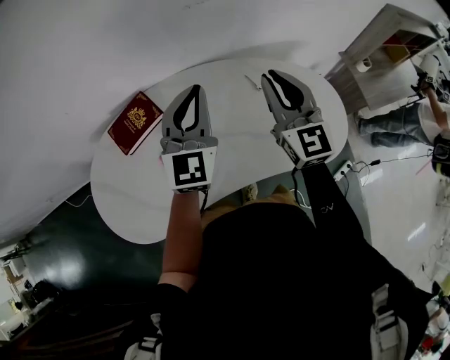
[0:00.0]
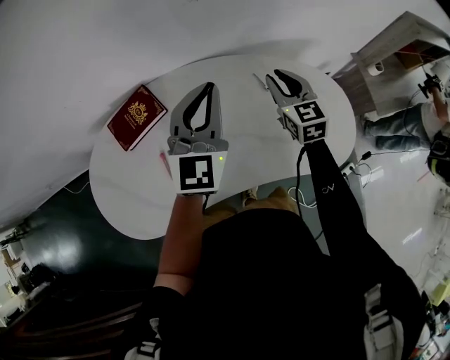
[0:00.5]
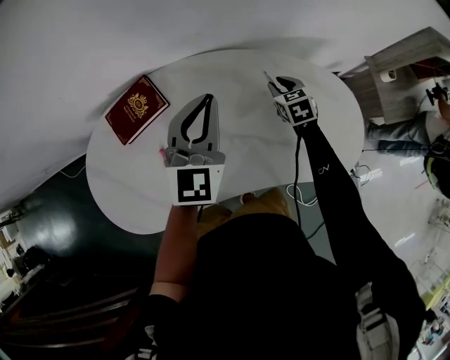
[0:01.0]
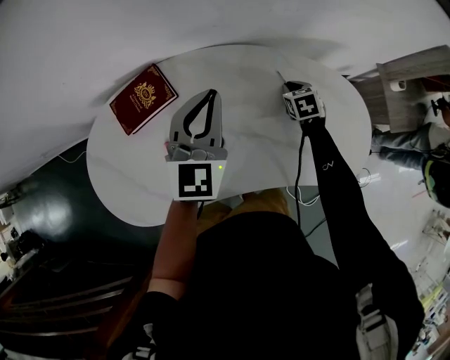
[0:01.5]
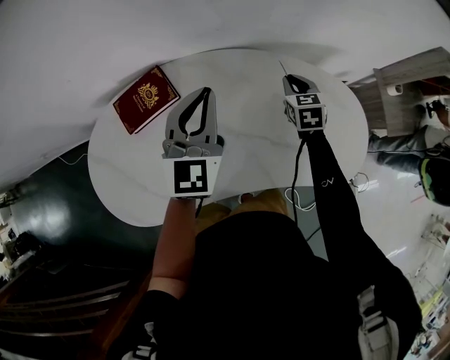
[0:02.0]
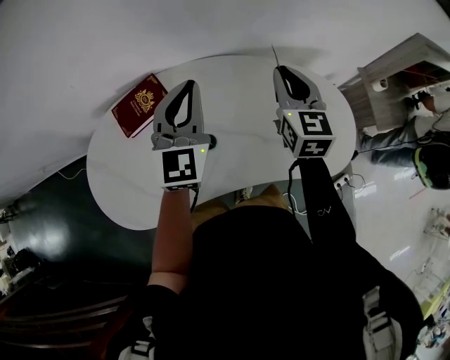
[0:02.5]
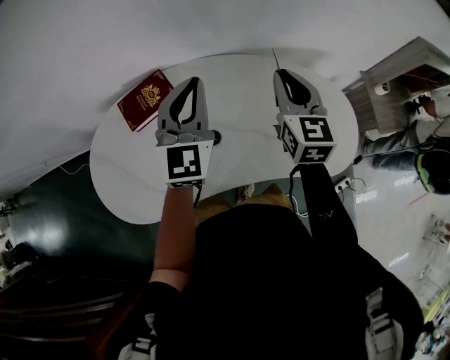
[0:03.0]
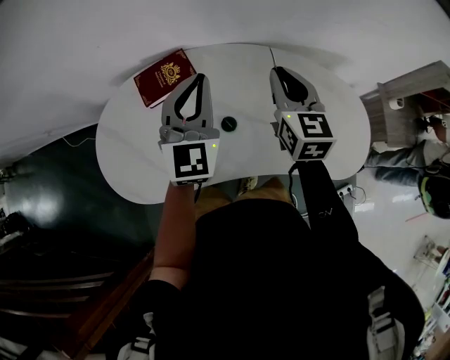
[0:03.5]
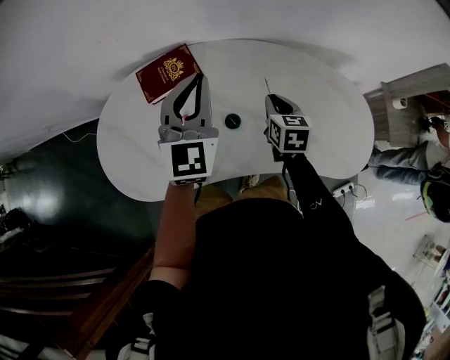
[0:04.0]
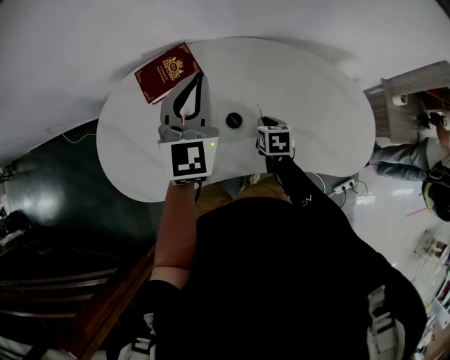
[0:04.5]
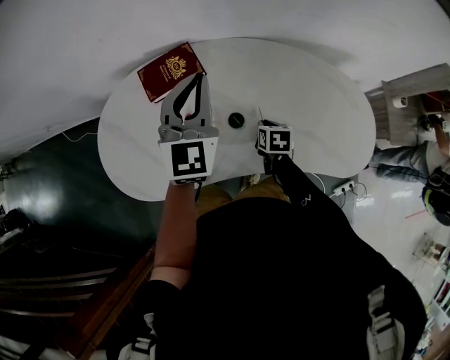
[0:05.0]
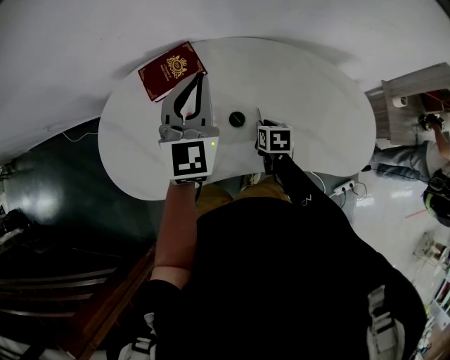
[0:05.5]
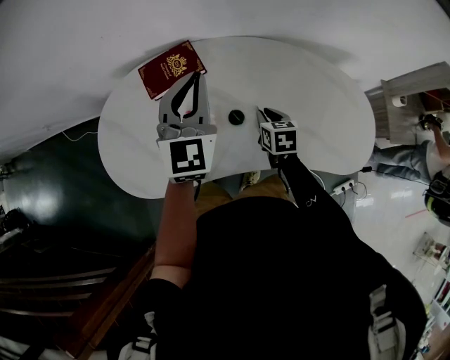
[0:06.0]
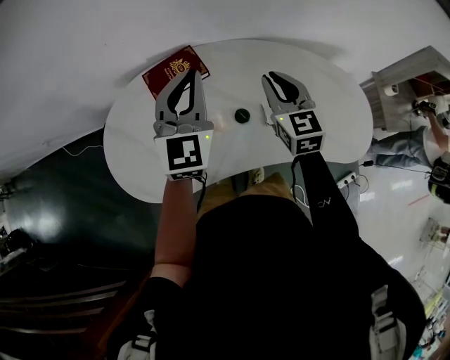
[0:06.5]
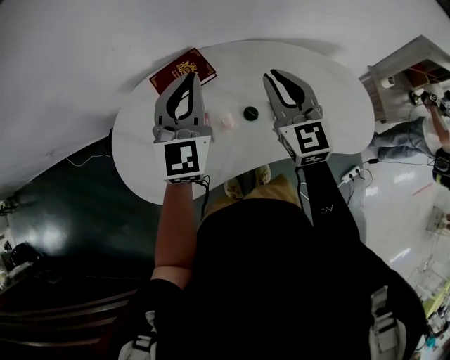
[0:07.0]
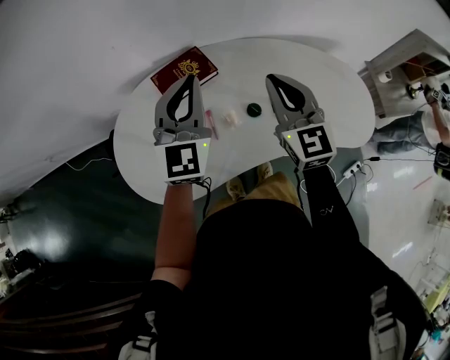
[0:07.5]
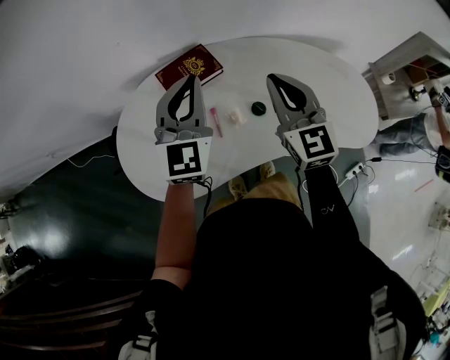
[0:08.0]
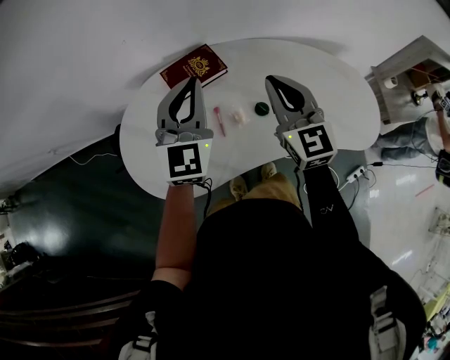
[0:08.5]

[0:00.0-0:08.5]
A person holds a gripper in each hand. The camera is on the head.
0:00.0 to 0:02.0: The right gripper goes roughly 25 cm downward and forward, and tilts its fingers roughly 40 degrees downward, while the left gripper shifts by approximately 5 cm.
0:02.0 to 0:04.0: The right gripper goes about 15 cm to the left and backward, and moves roughly 20 cm upward and comes back; the left gripper is displaced to the left and backward by roughly 10 cm.
0:04.0 to 0:06.5: The left gripper goes some 5 cm to the left, while the right gripper shifts about 15 cm upward and to the left, and swivels about 30 degrees.
0:06.5 to 0:08.5: The left gripper is displaced to the left by roughly 10 cm; the right gripper is displaced to the left, backward and upward by about 15 cm.

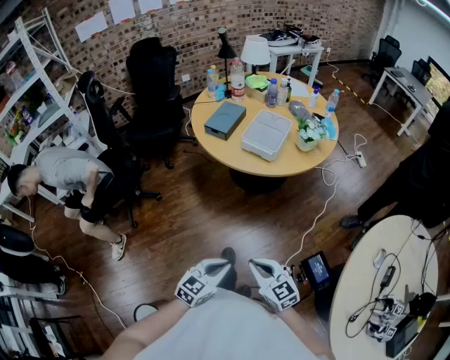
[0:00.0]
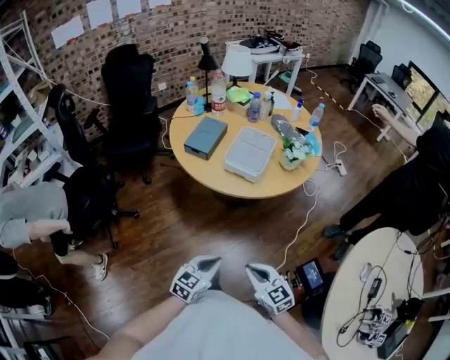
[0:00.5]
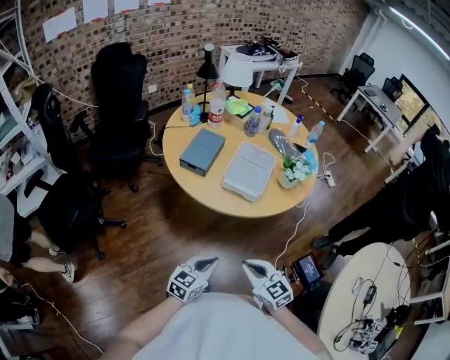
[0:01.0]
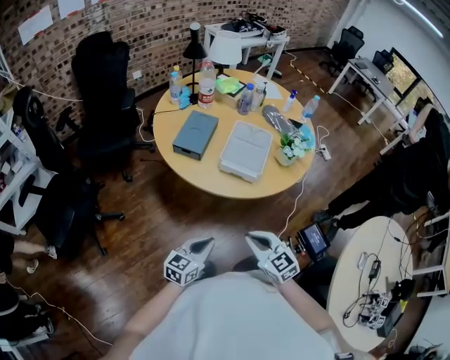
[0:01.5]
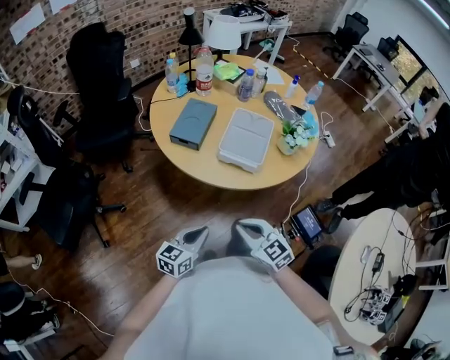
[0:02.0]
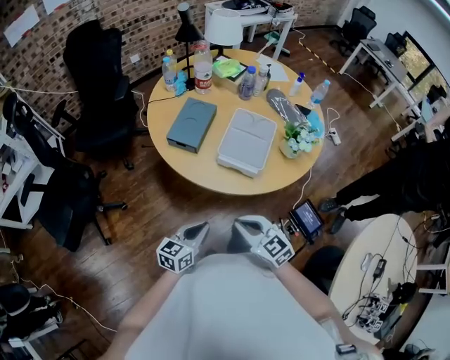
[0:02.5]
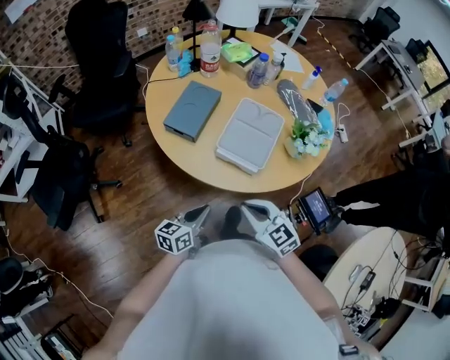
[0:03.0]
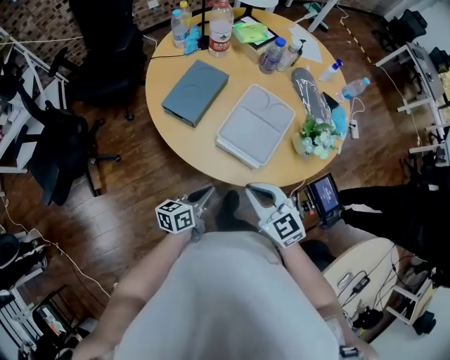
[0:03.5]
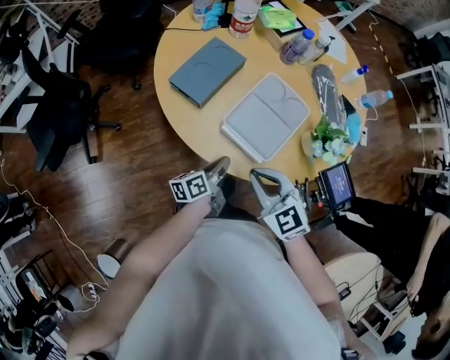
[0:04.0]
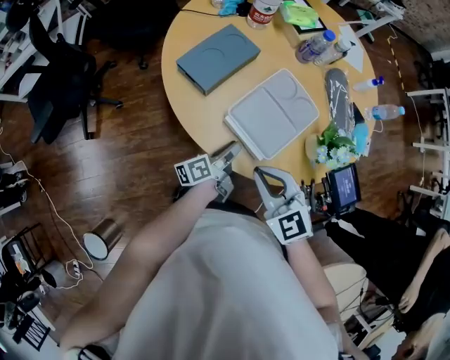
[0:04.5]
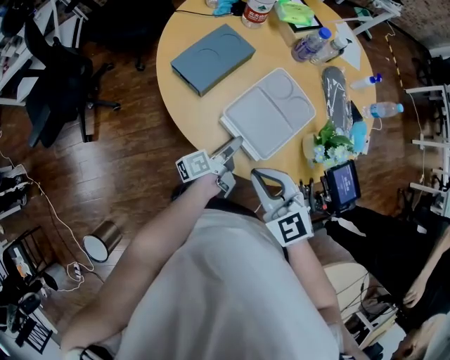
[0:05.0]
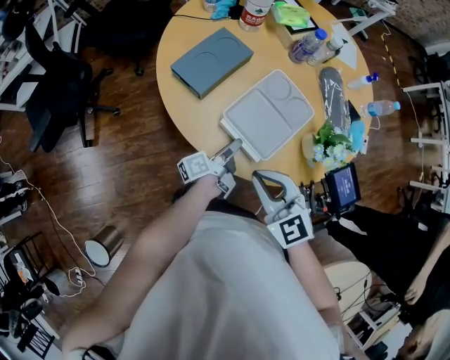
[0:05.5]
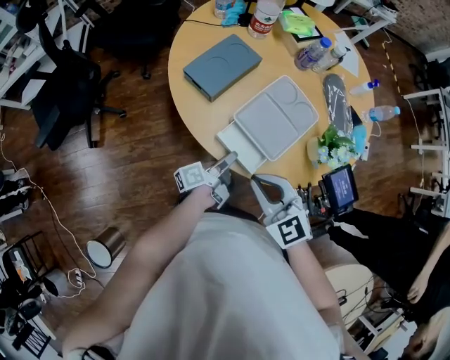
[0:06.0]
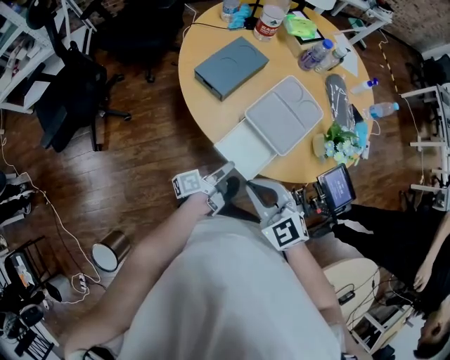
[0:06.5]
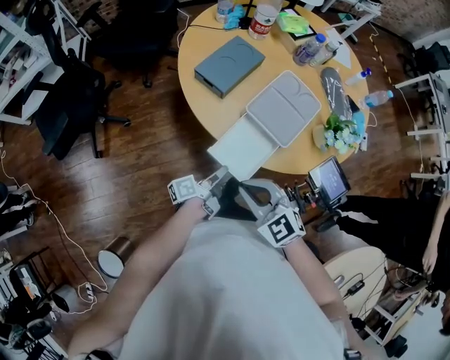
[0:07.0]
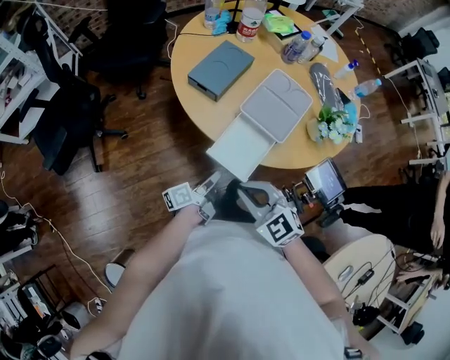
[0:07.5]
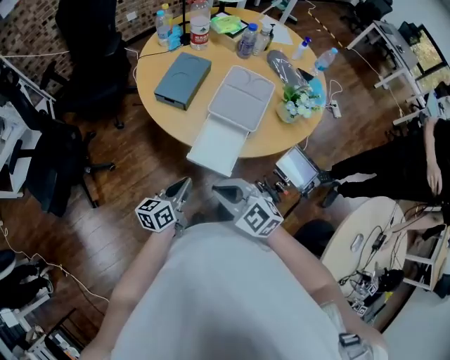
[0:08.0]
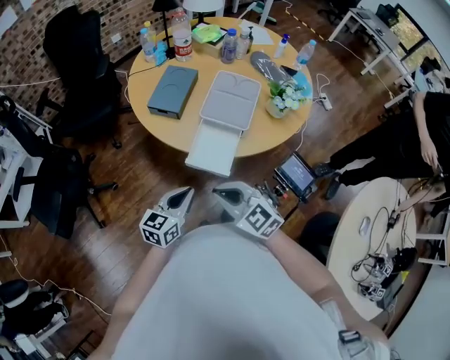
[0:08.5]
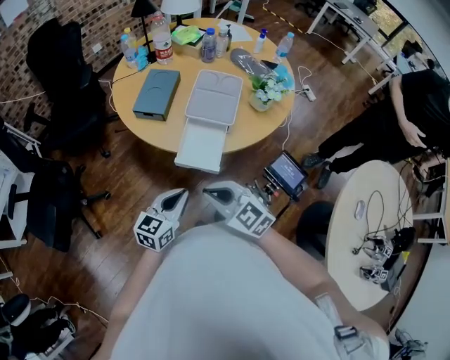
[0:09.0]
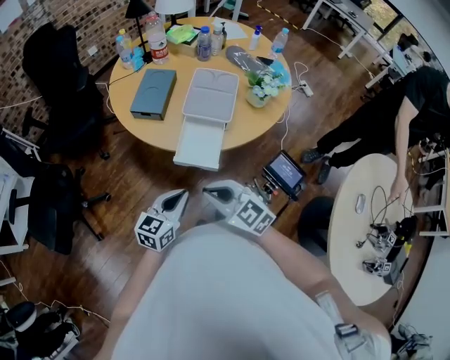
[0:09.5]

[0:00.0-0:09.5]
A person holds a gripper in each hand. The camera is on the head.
0:00.0 to 0:02.0: Both grippers travel together forward, approximately 30 cm.
0:02.0 to 0:04.0: The left gripper moves forward, to the right and downward, approximately 30 cm, and twists approximately 50 degrees counterclockwise, seen from behind. Meanwhile the right gripper heads forward and to the right, covering roughly 20 cm, and swivels approximately 20 degrees.
0:04.0 to 0:05.5: The left gripper moves about 5 cm, swivels roughly 20 degrees, and opens its fingers.
0:05.5 to 0:07.5: The left gripper heads backward and to the left, covering about 20 cm, while the right gripper moves to the left and backward, some 15 cm.
0:07.5 to 0:09.5: The left gripper moves upward and backward, about 15 cm, and twists about 70 degrees clockwise, seen from behind. Meanwhile the right gripper shifts about 5 cm backward, and changes its angle by roughly 20 degrees.

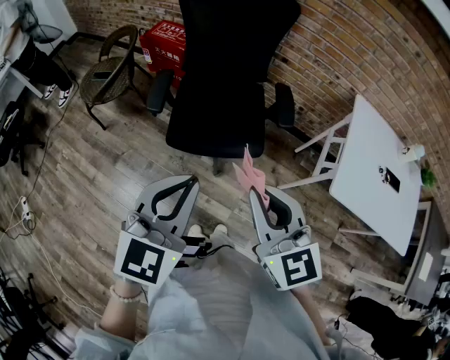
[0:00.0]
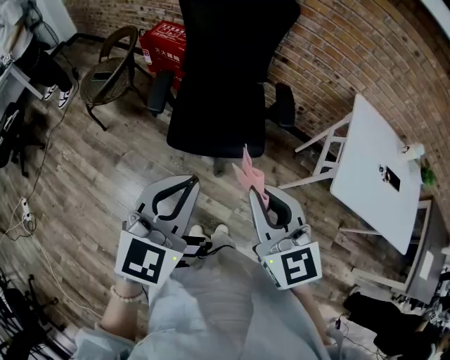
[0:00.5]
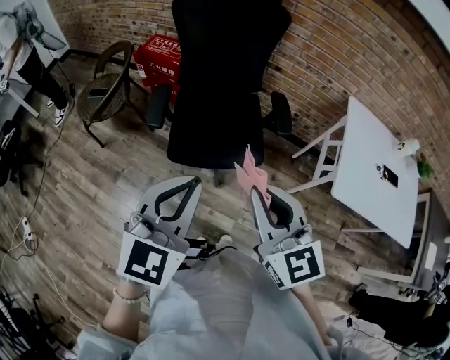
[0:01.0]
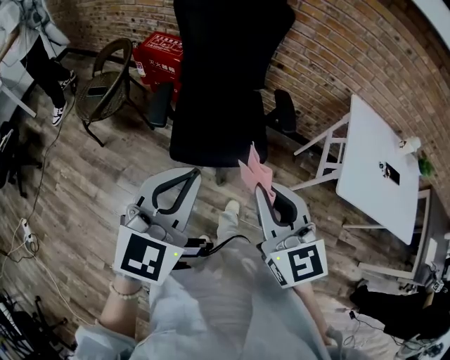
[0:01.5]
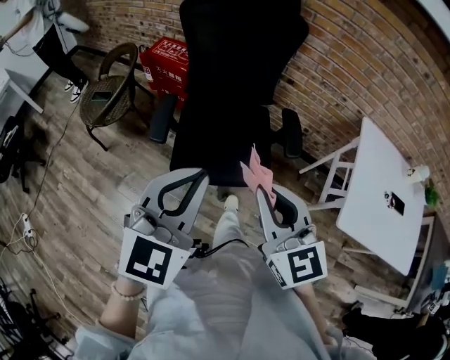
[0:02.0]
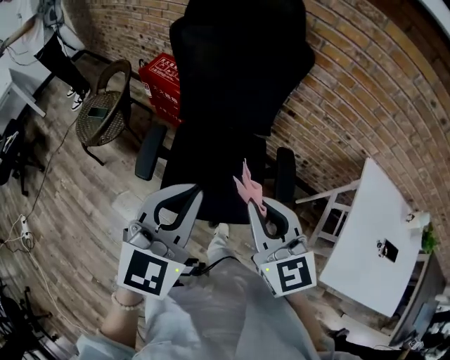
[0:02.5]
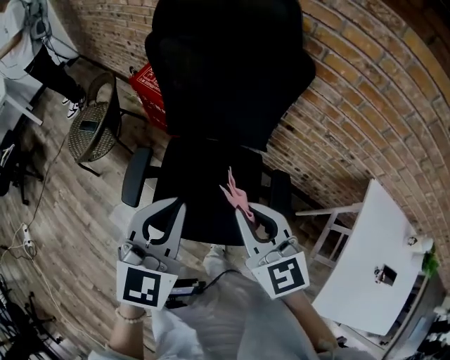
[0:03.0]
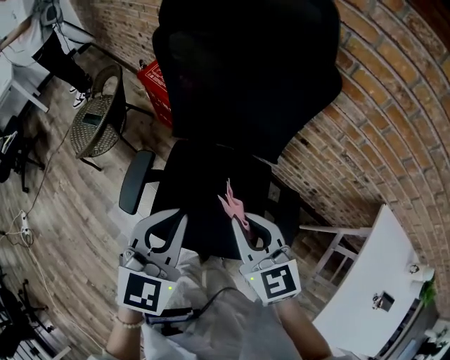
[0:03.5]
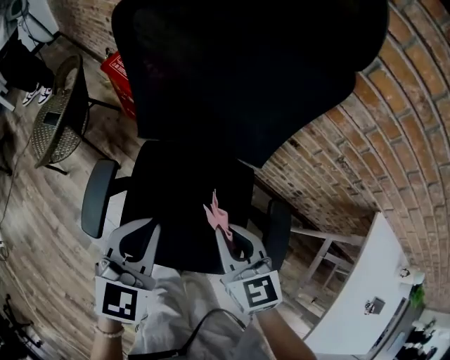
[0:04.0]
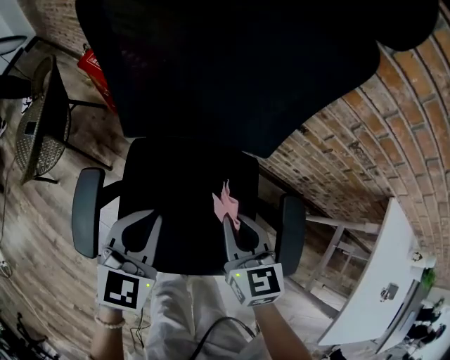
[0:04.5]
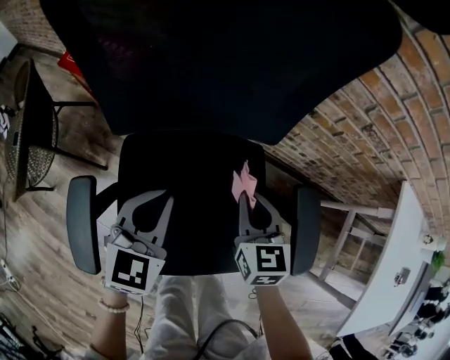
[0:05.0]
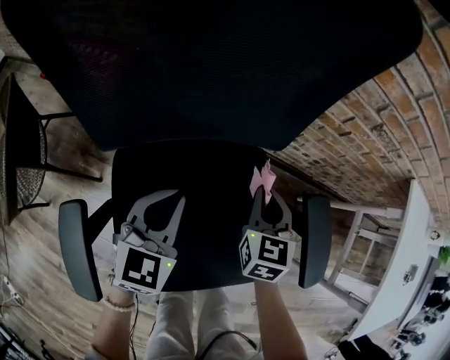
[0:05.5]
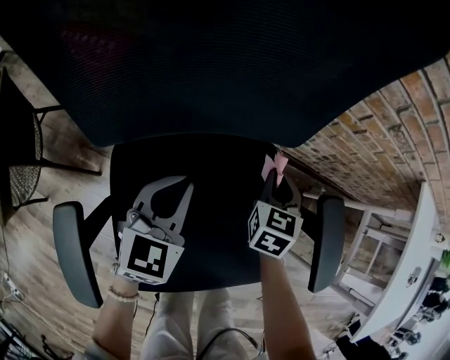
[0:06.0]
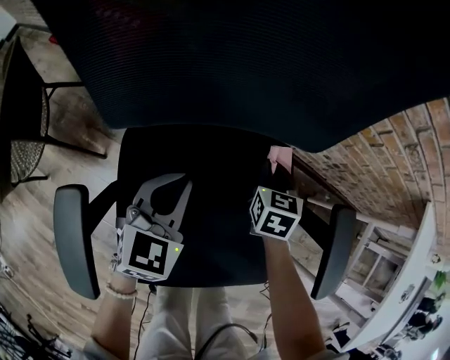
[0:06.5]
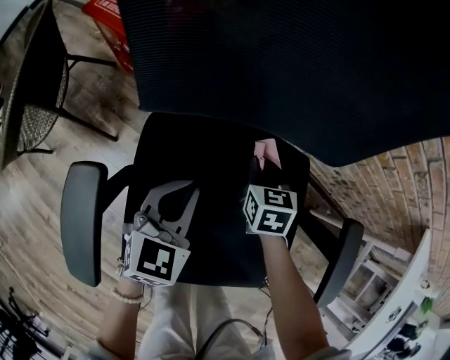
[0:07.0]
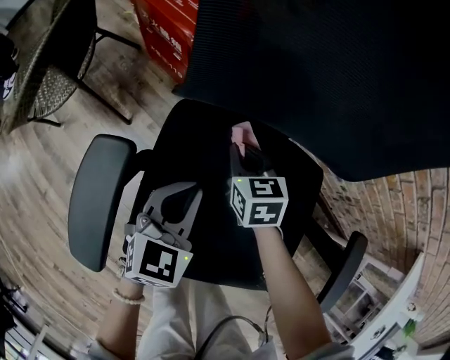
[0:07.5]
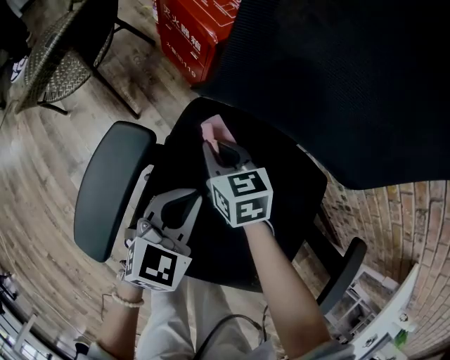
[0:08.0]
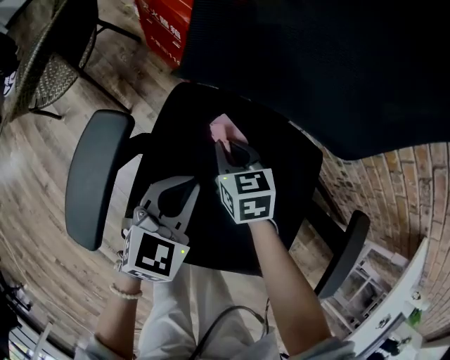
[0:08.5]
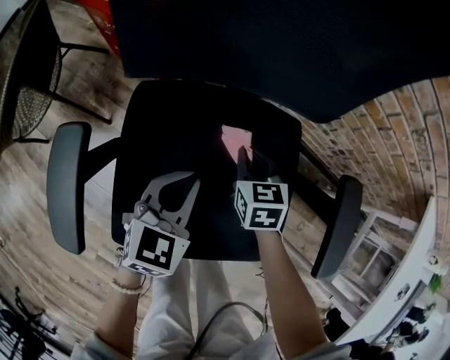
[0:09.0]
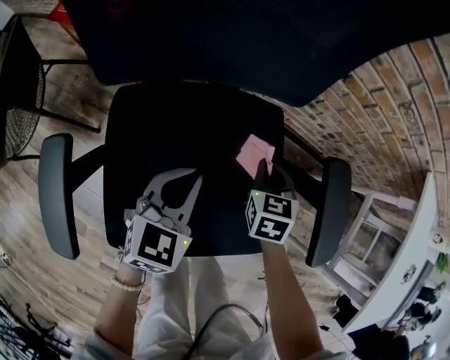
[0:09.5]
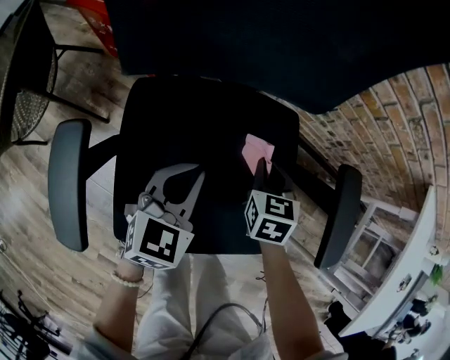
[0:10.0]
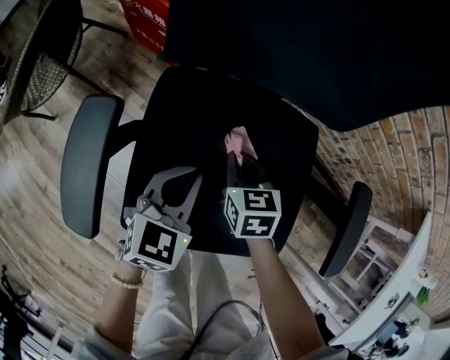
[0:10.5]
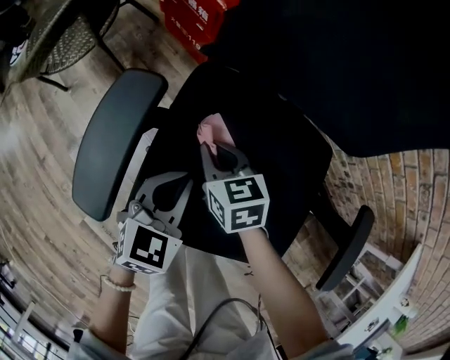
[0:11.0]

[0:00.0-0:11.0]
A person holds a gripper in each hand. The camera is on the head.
0:00.0 to 0:02.0: Both grippers move forward, about 10 cm.
0:02.0 to 0:03.5: Both grippers travel together forward, about 30 cm.
0:03.5 to 0:05.5: The two grippers go some 30 cm downward. The left gripper changes its angle by about 20 degrees, while the right gripper changes its angle by some 50 degrees.
0:05.5 to 0:07.5: The left gripper moves about 15 cm. Meanwhile the right gripper ends up roughly 30 cm from where it was, and turns by approximately 40 degrees.
0:07.5 to 0:09.0: The right gripper shifts by roughly 15 cm, while the left gripper changes place by about 10 cm.
0:09.0 to 0:11.0: The right gripper ends up about 20 cm from where it was, and swivels roughly 30 degrees. Meanwhile the left gripper moves approximately 15 cm.
